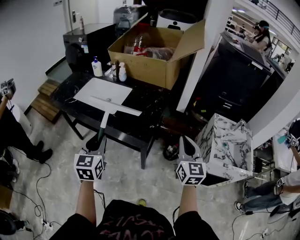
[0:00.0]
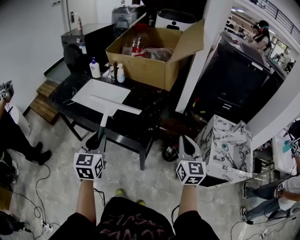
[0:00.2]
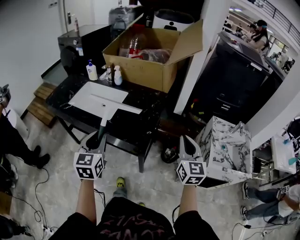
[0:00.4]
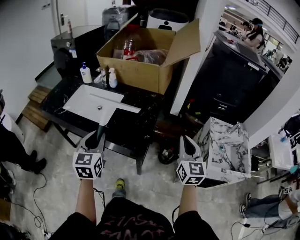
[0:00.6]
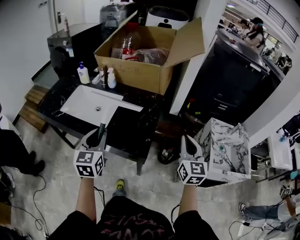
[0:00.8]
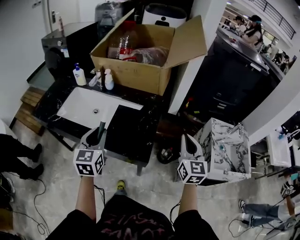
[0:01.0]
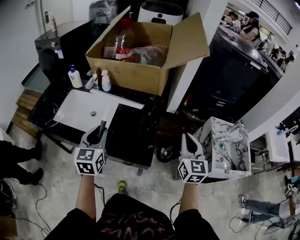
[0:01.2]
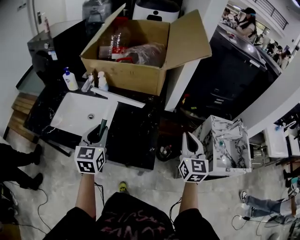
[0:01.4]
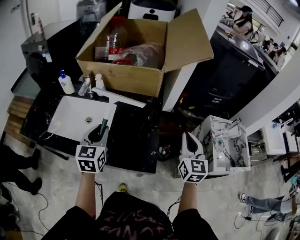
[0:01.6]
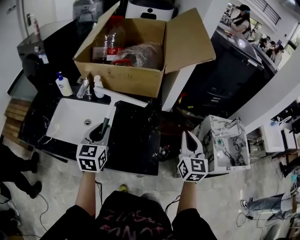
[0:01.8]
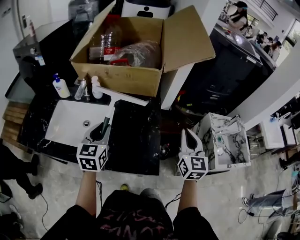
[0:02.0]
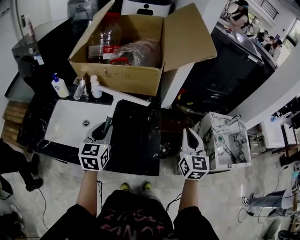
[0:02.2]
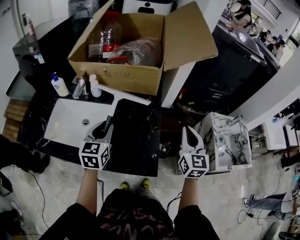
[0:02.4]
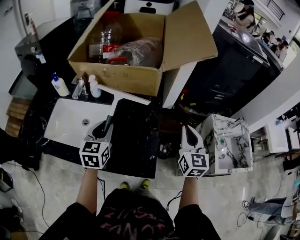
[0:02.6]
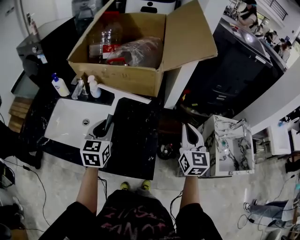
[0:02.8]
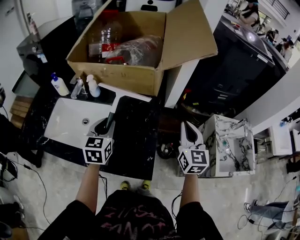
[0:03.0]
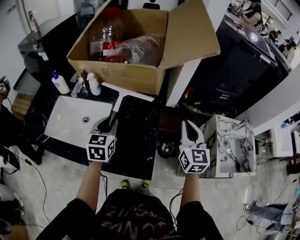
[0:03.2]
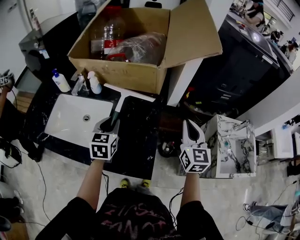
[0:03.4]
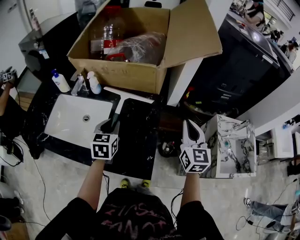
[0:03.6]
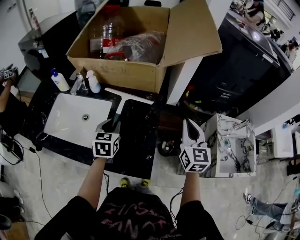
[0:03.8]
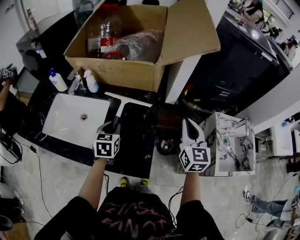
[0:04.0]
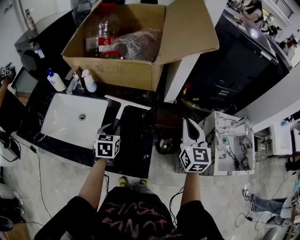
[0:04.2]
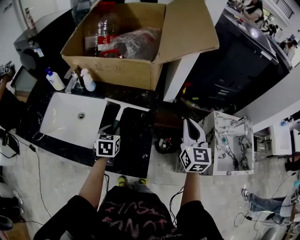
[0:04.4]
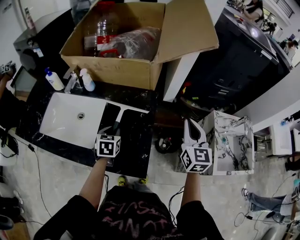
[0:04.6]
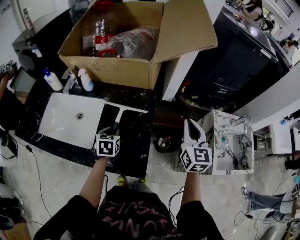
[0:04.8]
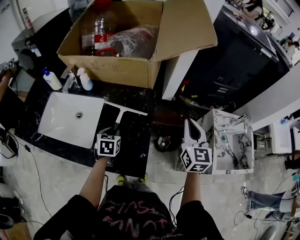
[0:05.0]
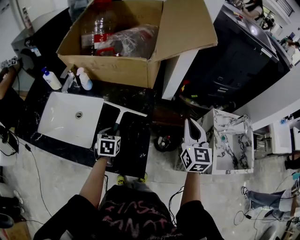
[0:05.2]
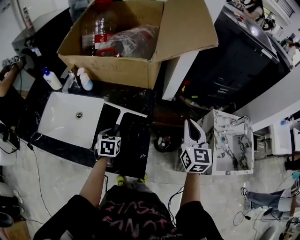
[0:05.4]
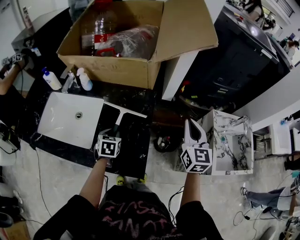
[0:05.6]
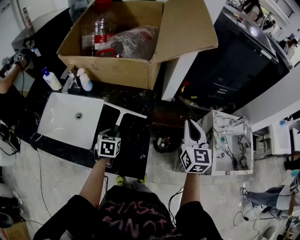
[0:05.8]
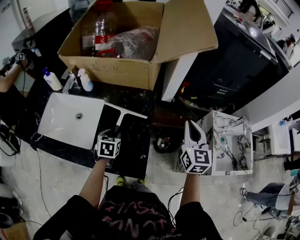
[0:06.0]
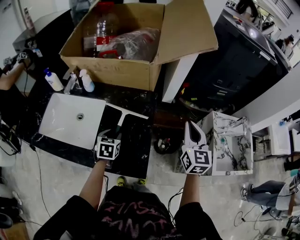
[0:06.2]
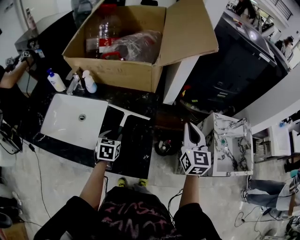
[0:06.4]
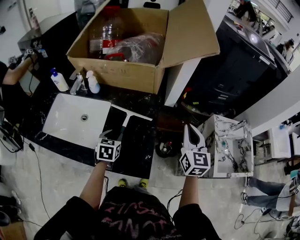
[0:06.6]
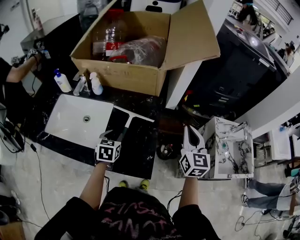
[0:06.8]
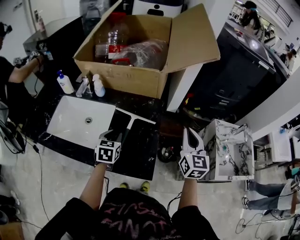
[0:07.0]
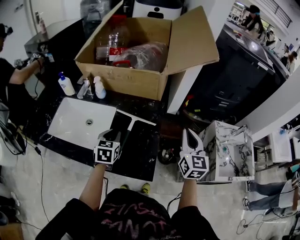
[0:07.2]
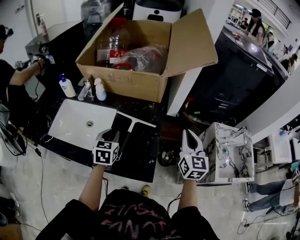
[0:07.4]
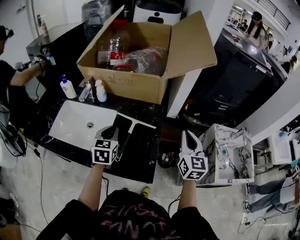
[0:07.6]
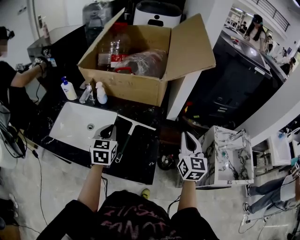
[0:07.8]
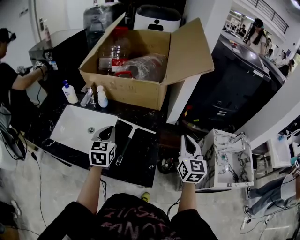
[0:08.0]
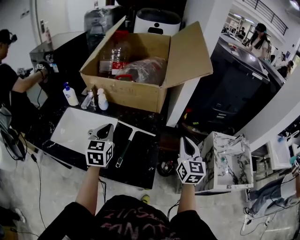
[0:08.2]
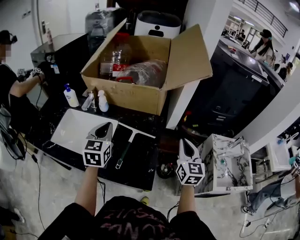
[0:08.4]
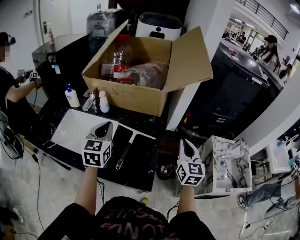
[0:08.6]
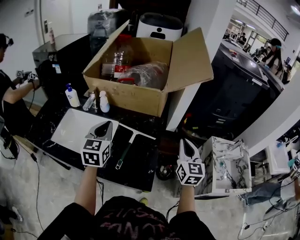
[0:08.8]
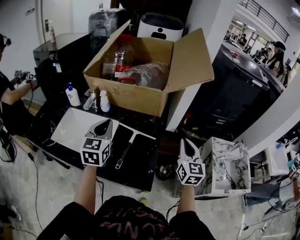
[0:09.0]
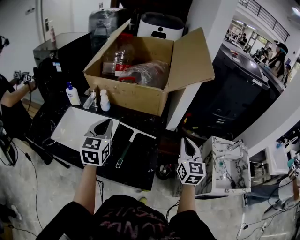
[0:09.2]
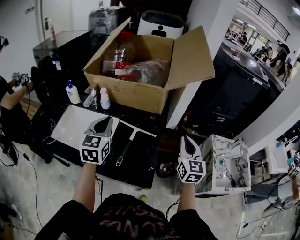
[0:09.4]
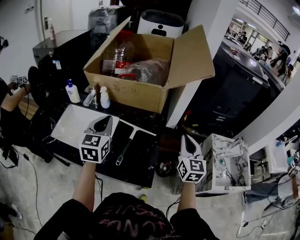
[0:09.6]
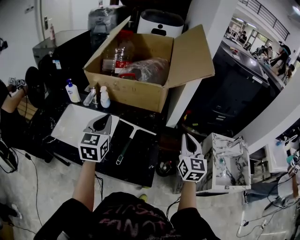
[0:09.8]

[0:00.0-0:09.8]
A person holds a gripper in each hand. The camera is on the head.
0.0 to 1.4 s: The two grippers go approximately 20 cm forward.
1.4 to 2.8 s: The two grippers go some 10 cm forward.
2.8 to 4.2 s: The left gripper goes roughly 10 cm downward.
4.2 to 5.6 s: The left gripper moves downward, some 5 cm.
5.6 to 7.0 s: The right gripper shifts by approximately 5 cm. Meanwhile the left gripper goes about 5 cm upward.
7.0 to 8.4 s: The left gripper moves upward, about 15 cm, changes its angle by about 20 degrees, and closes up.
8.4 to 9.8 s: The grippers make only small movements.

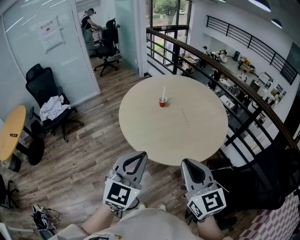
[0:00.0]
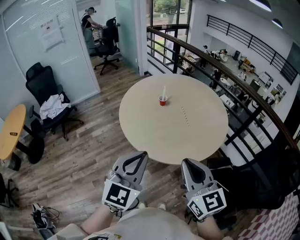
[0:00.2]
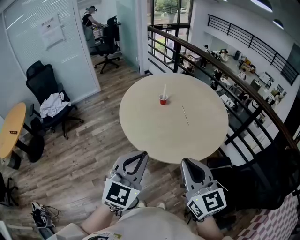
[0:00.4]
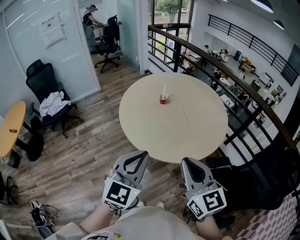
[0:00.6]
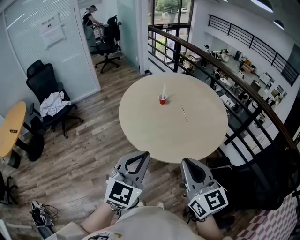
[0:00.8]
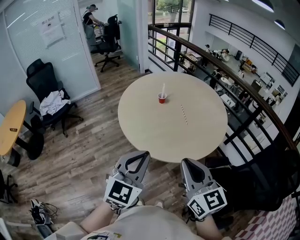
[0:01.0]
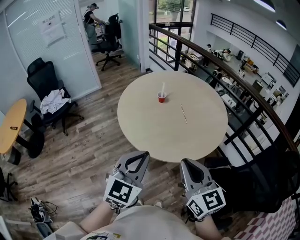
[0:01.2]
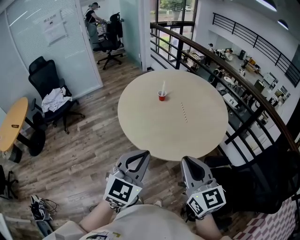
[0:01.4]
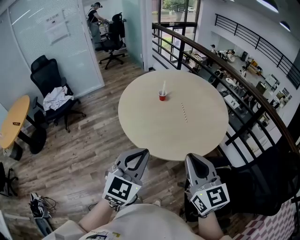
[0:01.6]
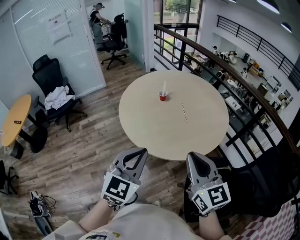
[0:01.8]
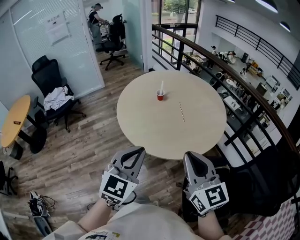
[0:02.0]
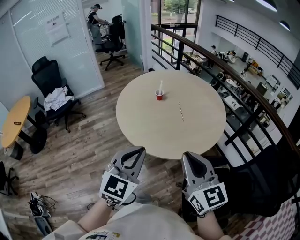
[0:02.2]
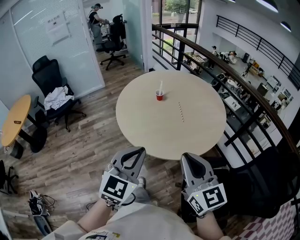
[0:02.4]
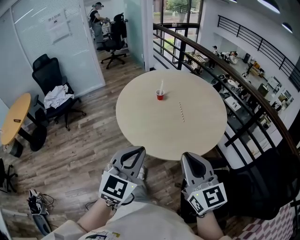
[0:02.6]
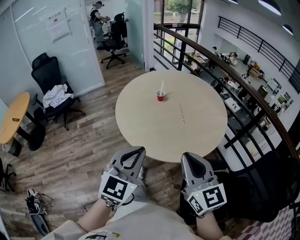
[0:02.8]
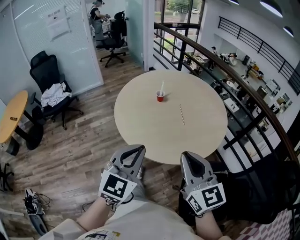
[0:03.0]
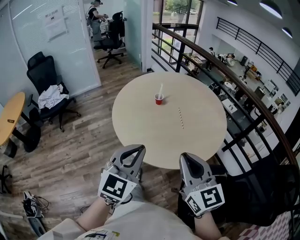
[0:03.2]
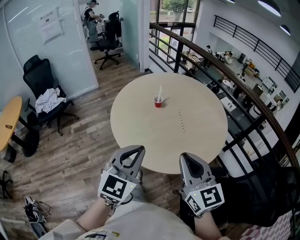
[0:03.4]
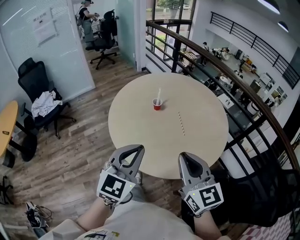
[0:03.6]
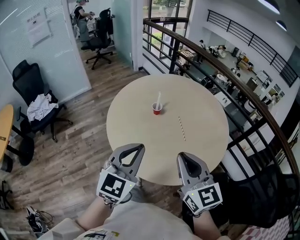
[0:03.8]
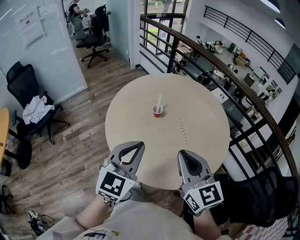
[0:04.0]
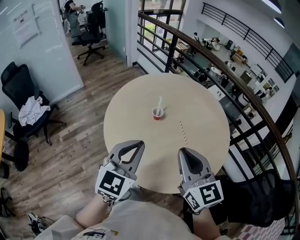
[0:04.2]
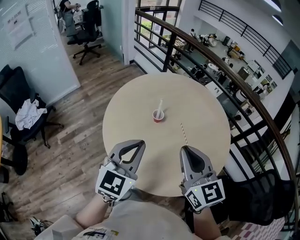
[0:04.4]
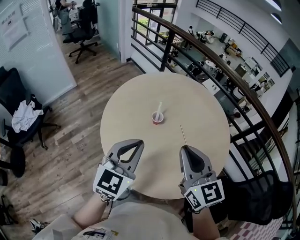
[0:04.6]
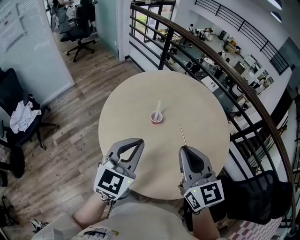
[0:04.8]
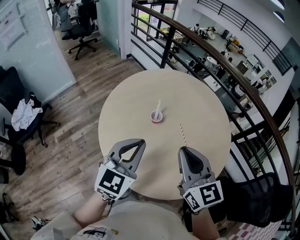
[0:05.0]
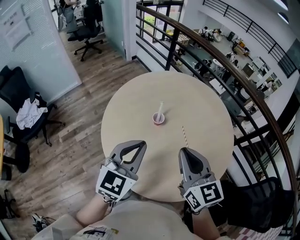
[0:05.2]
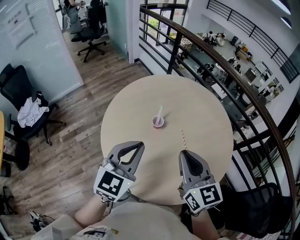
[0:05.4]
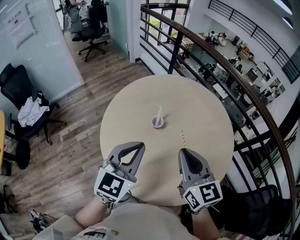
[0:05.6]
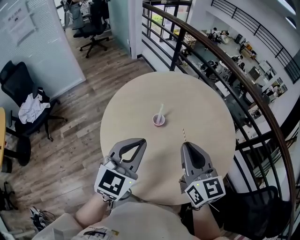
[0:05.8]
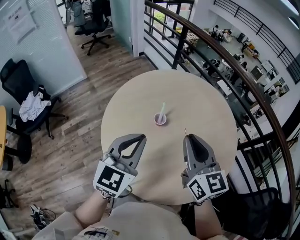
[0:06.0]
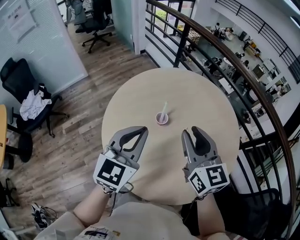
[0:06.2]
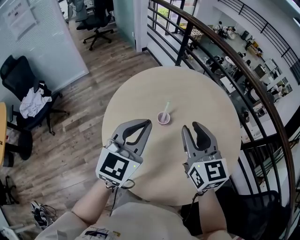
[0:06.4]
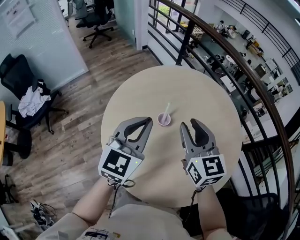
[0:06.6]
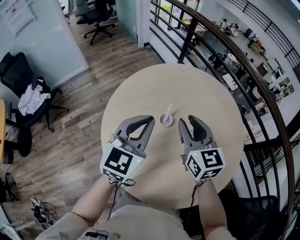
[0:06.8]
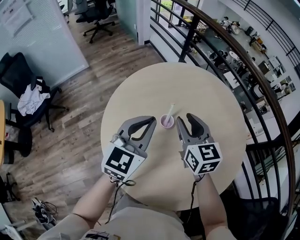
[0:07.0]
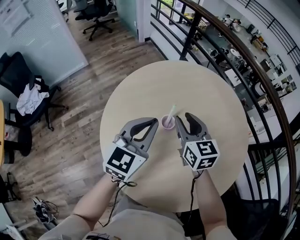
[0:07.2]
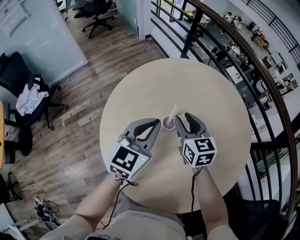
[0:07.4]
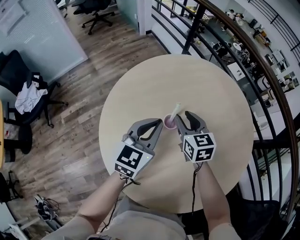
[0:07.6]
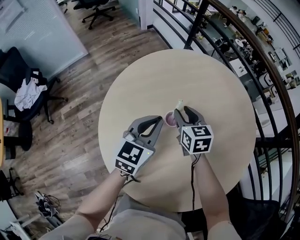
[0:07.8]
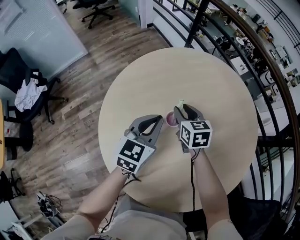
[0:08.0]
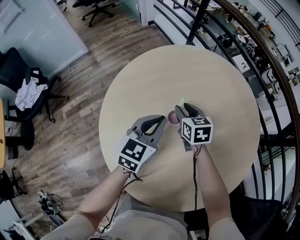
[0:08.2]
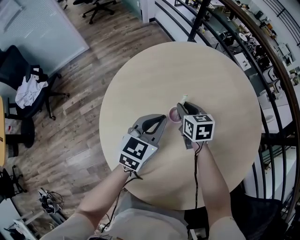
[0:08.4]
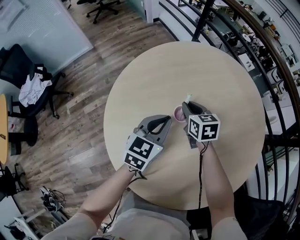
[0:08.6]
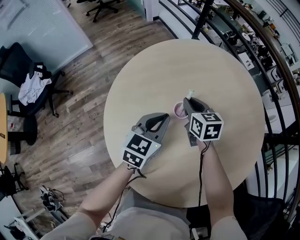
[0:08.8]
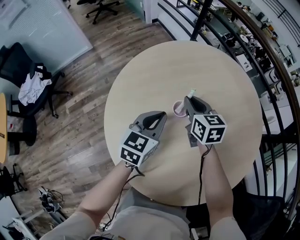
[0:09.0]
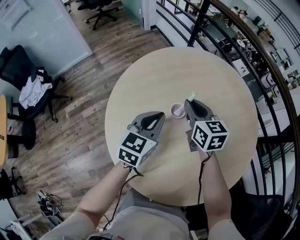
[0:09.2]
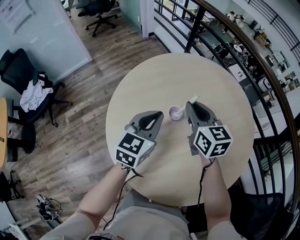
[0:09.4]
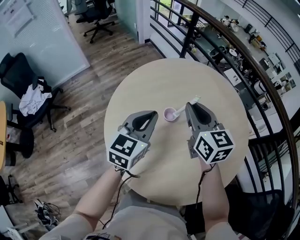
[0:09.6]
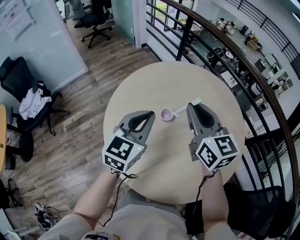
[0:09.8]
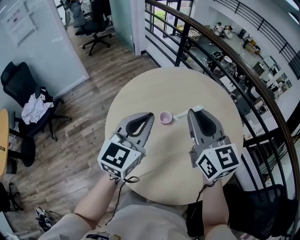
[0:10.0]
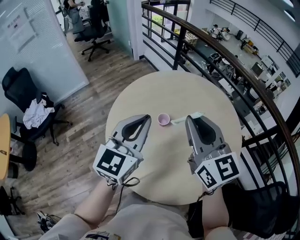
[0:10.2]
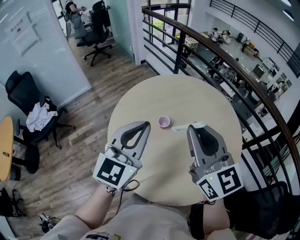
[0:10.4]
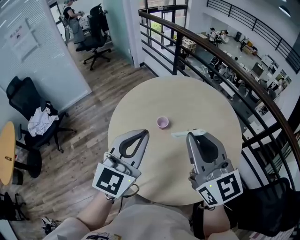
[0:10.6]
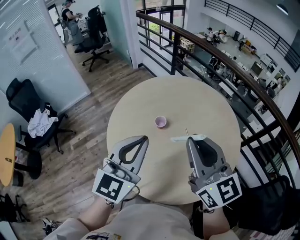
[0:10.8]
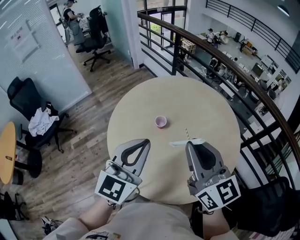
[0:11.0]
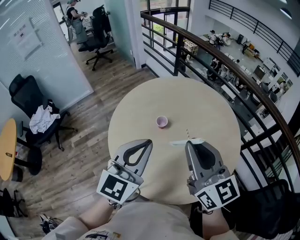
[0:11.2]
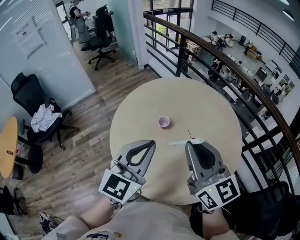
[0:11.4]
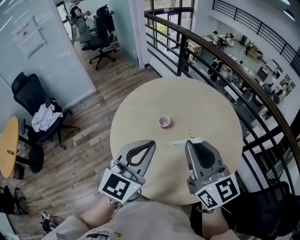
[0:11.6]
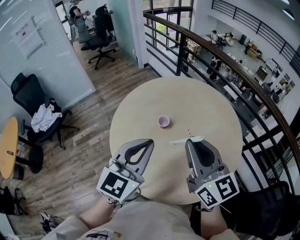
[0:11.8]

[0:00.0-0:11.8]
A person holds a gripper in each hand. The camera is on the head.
0.0 to 1.4 s: The grippers make only small movements.
1.4 to 3.0 s: There are only small adjustments of the grippers.
3.0 to 4.4 s: The left gripper shifts approximately 30 cm forward. The right gripper shifts approximately 30 cm forward and to the left.
4.4 to 6.0 s: Both grippers travel together forward, some 10 cm.
6.0 to 7.4 s: The left gripper is displaced forward and downward by roughly 20 cm, while the right gripper heads downward and forward, covering about 25 cm, and opens.
7.4 to 8.8 s: The grippers both shift downward by some 10 cm. The right gripper closes.
8.8 to 10.4 s: Both grippers travel together upward and backward, some 40 cm. The right gripper angles its fingers upward, by roughly 40 degrees. The left gripper rotates roughly 30 degrees.
10.4 to 11.8 s: The left gripper shifts roughly 5 cm backward, while the right gripper shifts by approximately 5 cm.

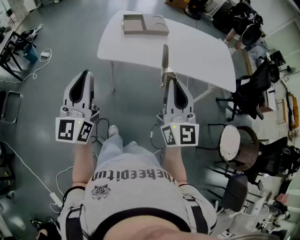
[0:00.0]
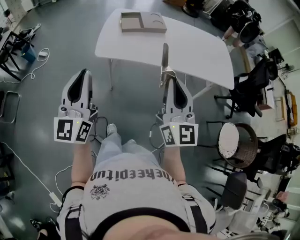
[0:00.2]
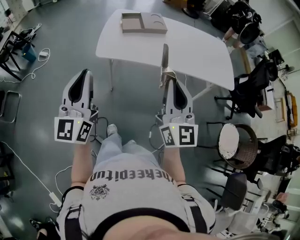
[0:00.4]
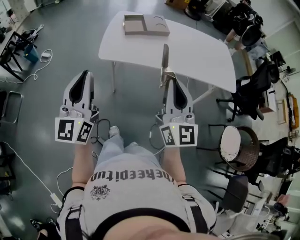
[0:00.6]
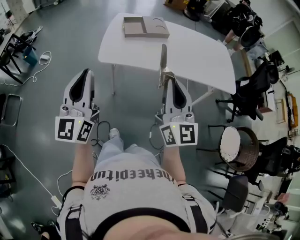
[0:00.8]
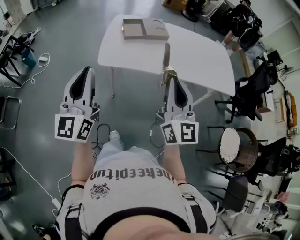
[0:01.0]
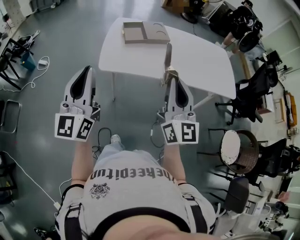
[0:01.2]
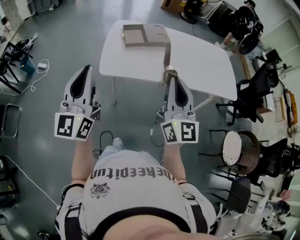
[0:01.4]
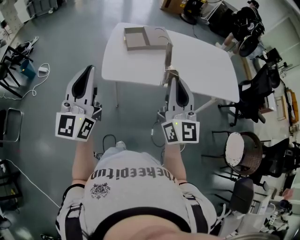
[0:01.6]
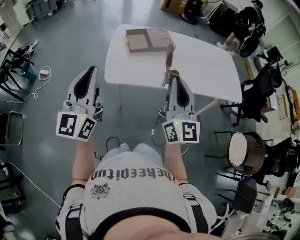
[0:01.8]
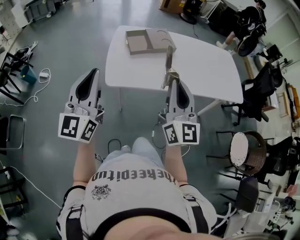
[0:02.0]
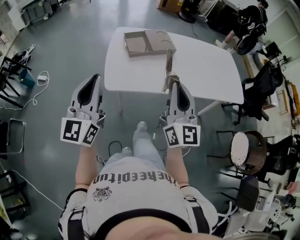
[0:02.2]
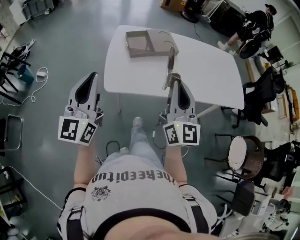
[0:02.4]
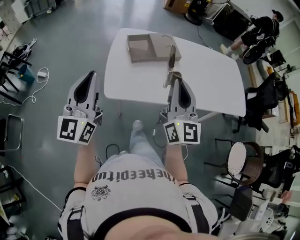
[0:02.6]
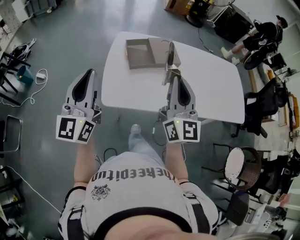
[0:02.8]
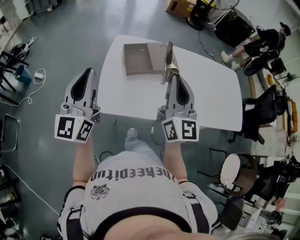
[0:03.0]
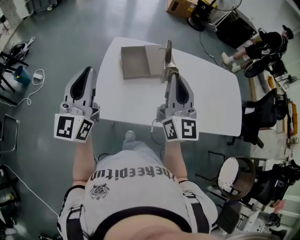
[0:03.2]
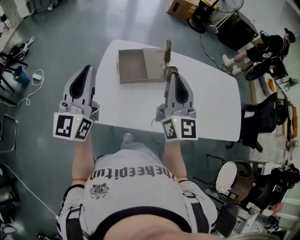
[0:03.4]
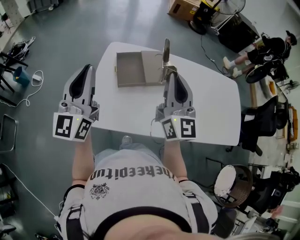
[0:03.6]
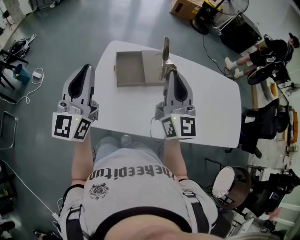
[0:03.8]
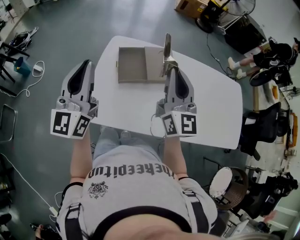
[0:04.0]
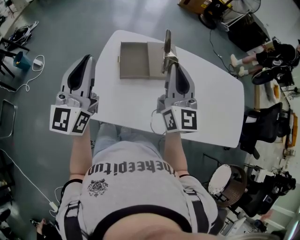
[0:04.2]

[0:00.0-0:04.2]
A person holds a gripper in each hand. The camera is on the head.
0.0 to 1.4 s: The two grippers go about 10 cm forward.
1.4 to 2.8 s: The two grippers go some 20 cm forward.
2.8 to 4.2 s: Both grippers travel together forward, some 20 cm.
